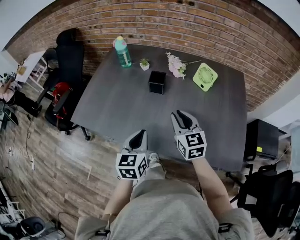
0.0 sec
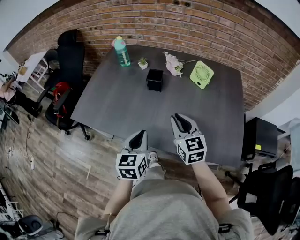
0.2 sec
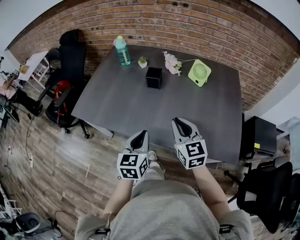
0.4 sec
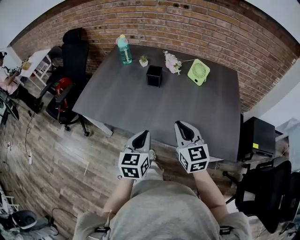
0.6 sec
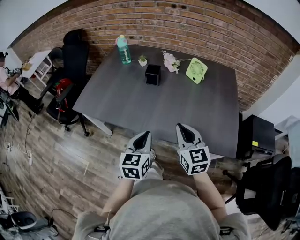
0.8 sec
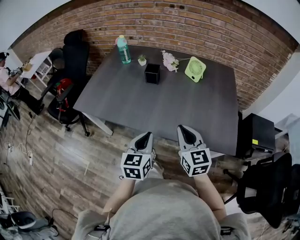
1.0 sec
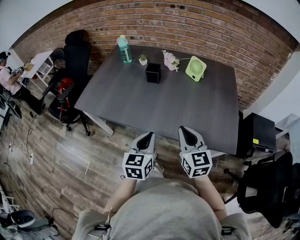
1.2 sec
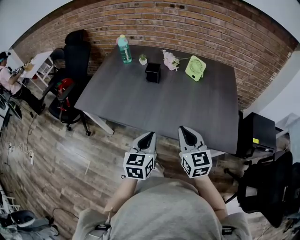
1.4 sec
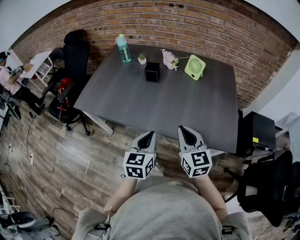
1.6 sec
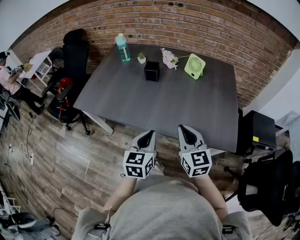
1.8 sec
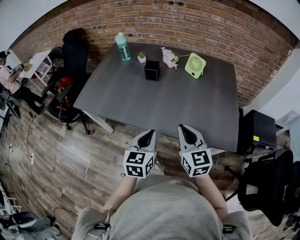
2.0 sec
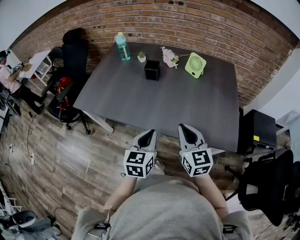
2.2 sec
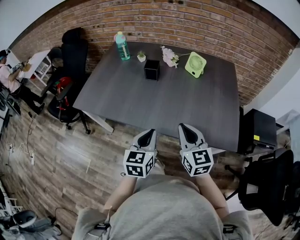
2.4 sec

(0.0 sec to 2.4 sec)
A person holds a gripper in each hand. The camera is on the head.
0.0 sec - 1.2 sec: The left gripper is displaced backward and to the right by some 15 cm. Meanwhile the right gripper goes approximately 20 cm backward.
1.2 sec - 2.4 sec: Neither gripper changes place.

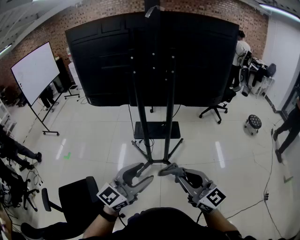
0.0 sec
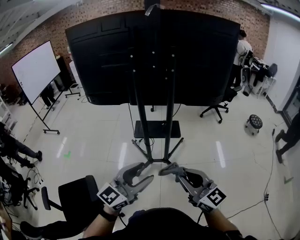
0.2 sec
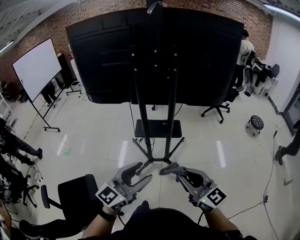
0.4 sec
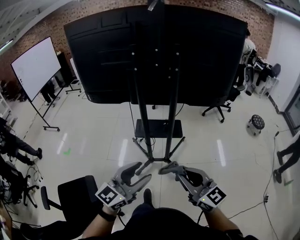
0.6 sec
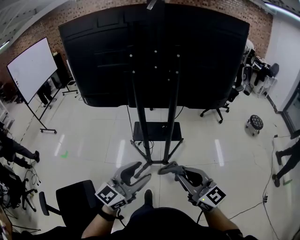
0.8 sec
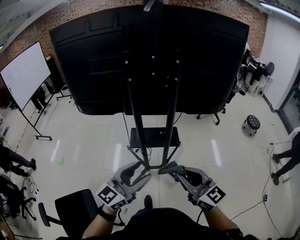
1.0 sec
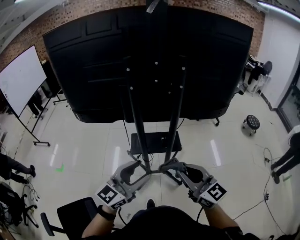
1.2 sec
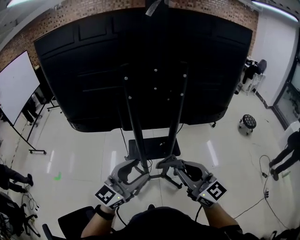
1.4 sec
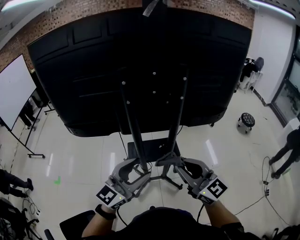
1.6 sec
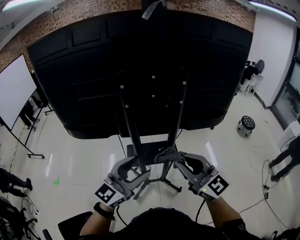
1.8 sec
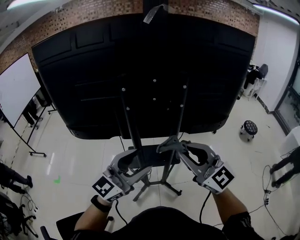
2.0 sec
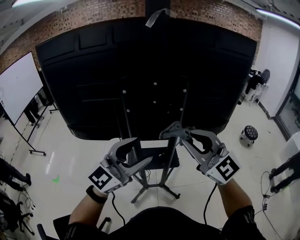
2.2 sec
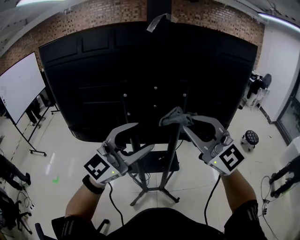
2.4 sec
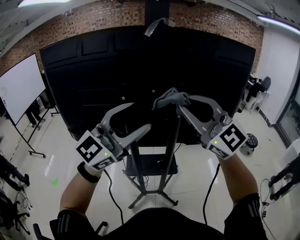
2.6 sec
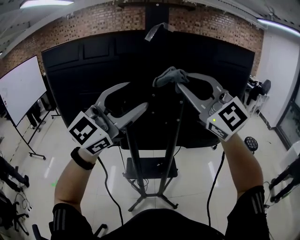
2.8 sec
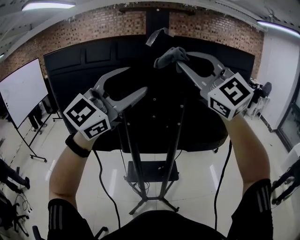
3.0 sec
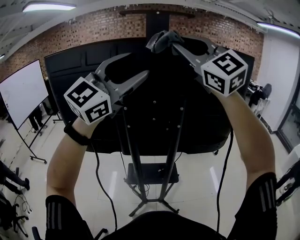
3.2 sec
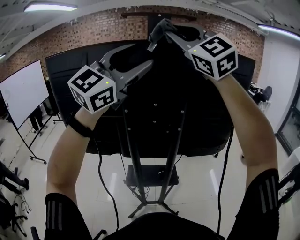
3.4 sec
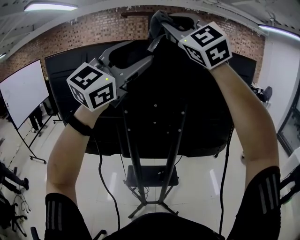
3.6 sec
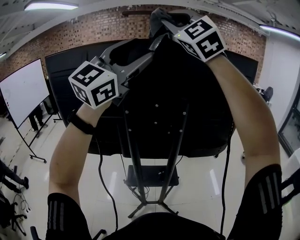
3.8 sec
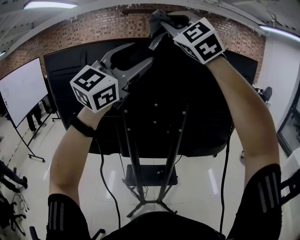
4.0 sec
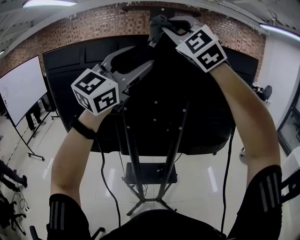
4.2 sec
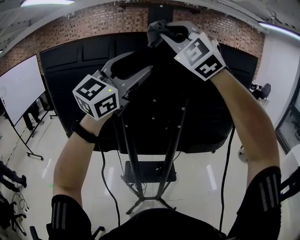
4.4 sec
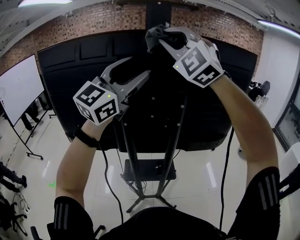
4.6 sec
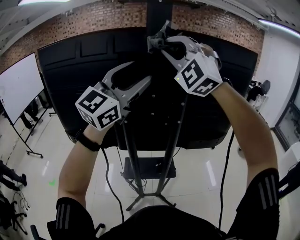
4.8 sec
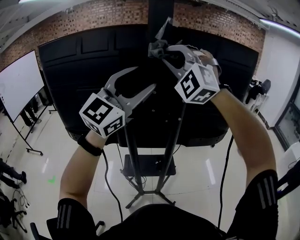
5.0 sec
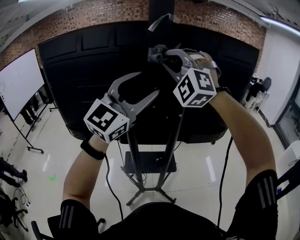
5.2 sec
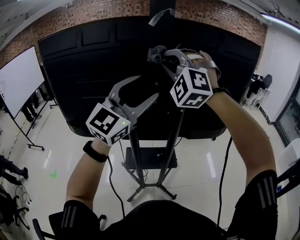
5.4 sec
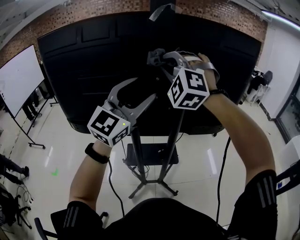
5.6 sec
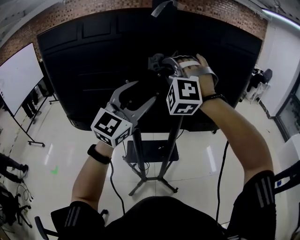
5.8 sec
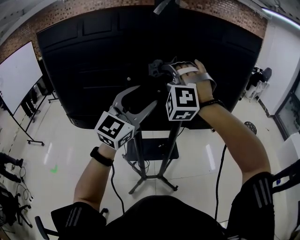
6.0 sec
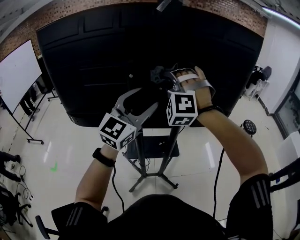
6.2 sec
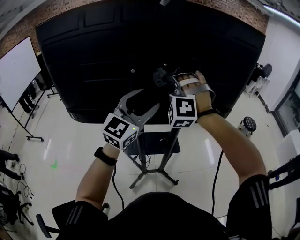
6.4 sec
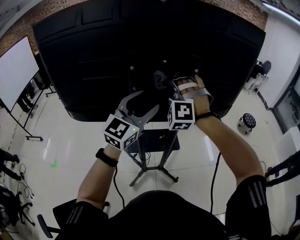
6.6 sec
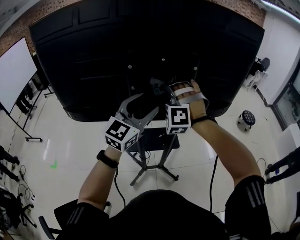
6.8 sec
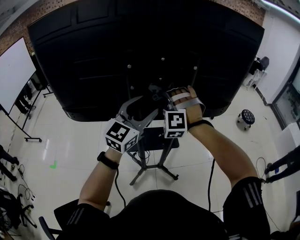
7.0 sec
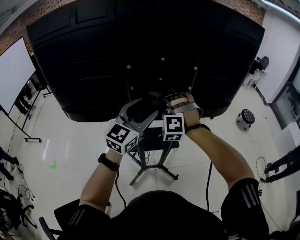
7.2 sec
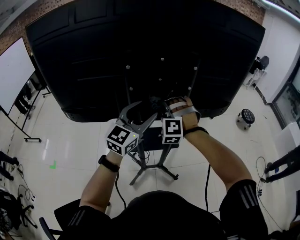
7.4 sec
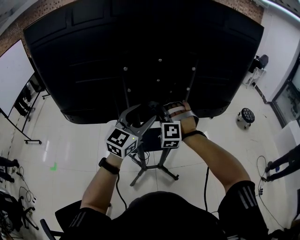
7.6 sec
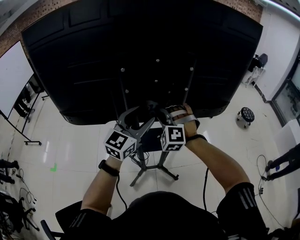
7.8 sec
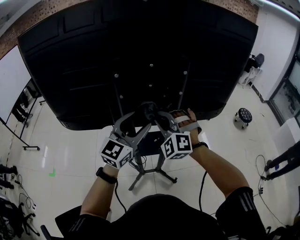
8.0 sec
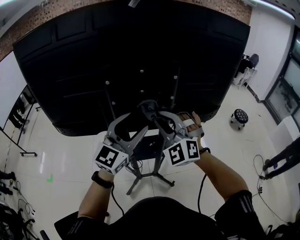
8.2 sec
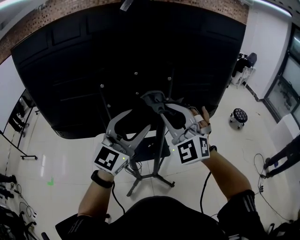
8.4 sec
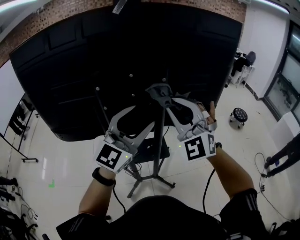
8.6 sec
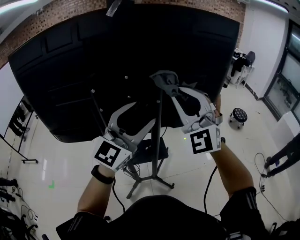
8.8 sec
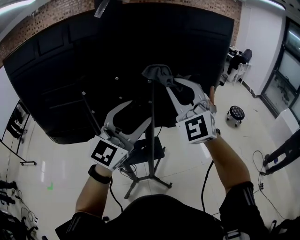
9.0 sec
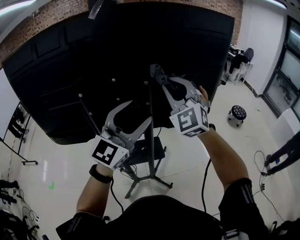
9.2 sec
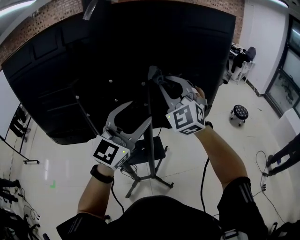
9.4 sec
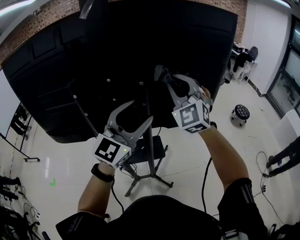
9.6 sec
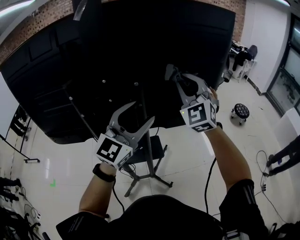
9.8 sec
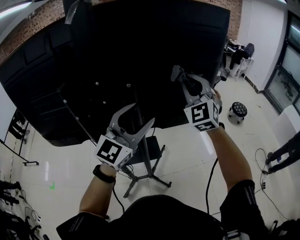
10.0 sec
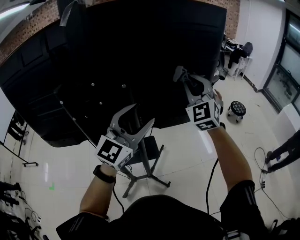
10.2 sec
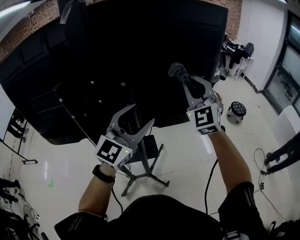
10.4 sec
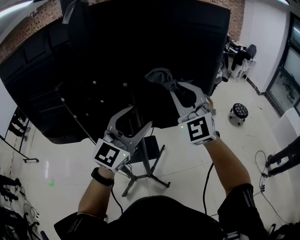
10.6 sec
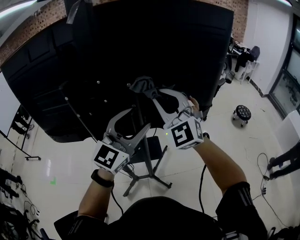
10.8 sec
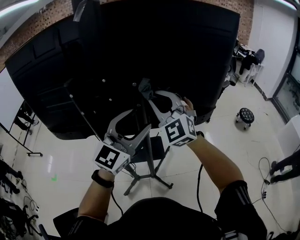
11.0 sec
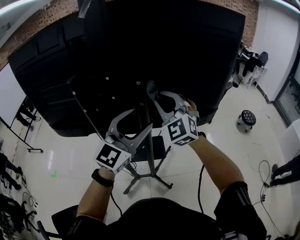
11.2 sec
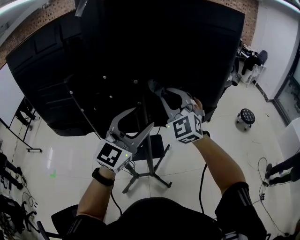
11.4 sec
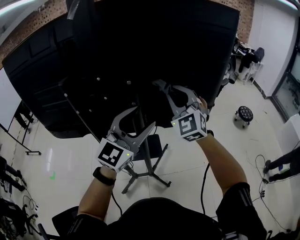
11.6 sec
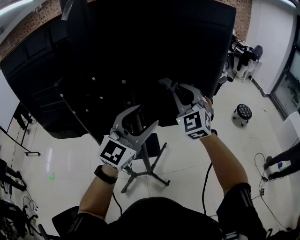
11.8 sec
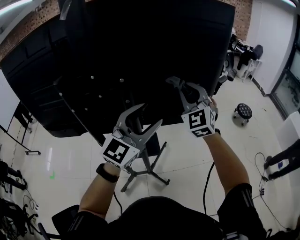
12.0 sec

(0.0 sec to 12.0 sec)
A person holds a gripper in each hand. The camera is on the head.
0.0 sec - 1.6 sec: Both grippers move forward, about 30 cm.
1.6 sec - 3.0 sec: The left gripper goes about 35 cm upward, and rotates approximately 30 degrees. The right gripper travels upward and forward by roughly 40 cm, and rotates around the line of its fingers by approximately 40 degrees, counterclockwise from behind.
3.0 sec - 4.4 sec: The right gripper moves forward, to the left and upward, some 15 cm, and swivels approximately 30 degrees; the left gripper heads forward, covering about 5 cm, and goes upward and returns, approximately 10 cm each way.
4.4 sec - 6.0 sec: Both grippers travel together downward, approximately 25 cm. The right gripper changes its angle by approximately 40 degrees.
6.0 sec - 7.6 sec: The right gripper moves downward, some 25 cm. Meanwhile the left gripper travels downward by approximately 15 cm.
7.6 sec - 9.0 sec: The left gripper goes roughly 20 cm upward and to the right. The right gripper shifts roughly 30 cm upward and to the right, and tips its fingers upward by roughly 40 degrees.
9.0 sec - 10.4 sec: The left gripper goes some 10 cm to the right and forward; the right gripper is displaced to the right and forward by about 15 cm.
10.4 sec - 12.0 sec: The right gripper travels downward by roughly 5 cm, and goes to the left and returns, approximately 15 cm each way.

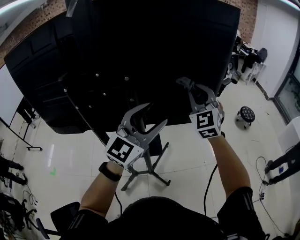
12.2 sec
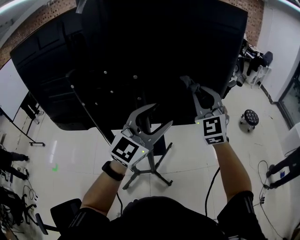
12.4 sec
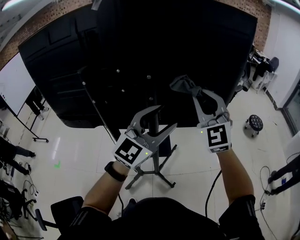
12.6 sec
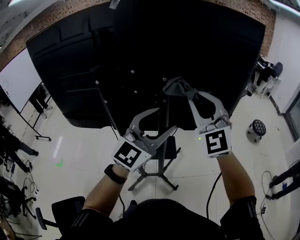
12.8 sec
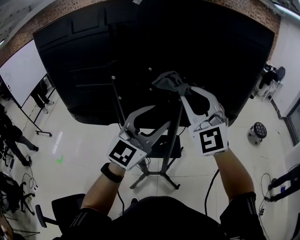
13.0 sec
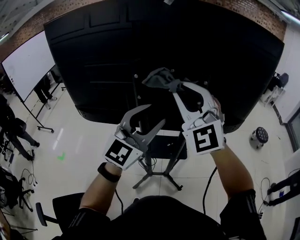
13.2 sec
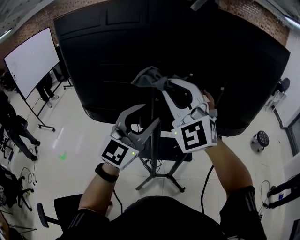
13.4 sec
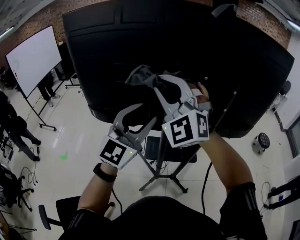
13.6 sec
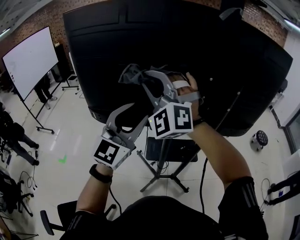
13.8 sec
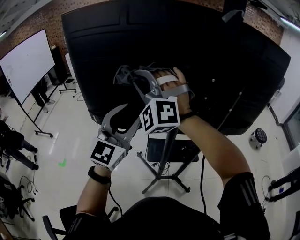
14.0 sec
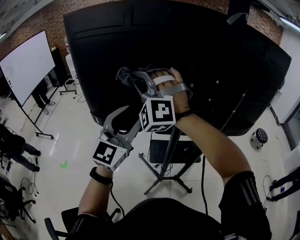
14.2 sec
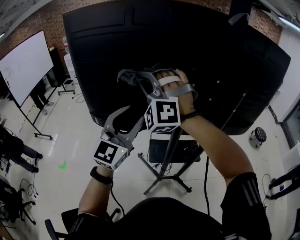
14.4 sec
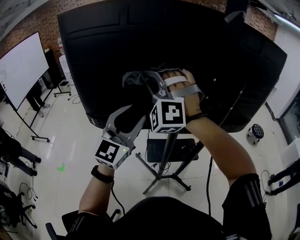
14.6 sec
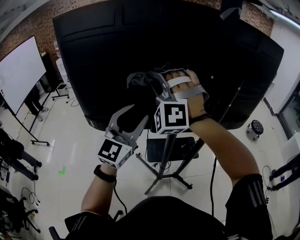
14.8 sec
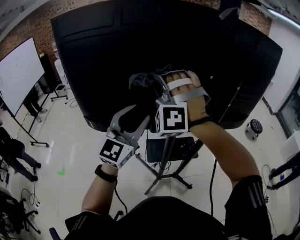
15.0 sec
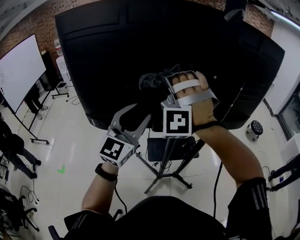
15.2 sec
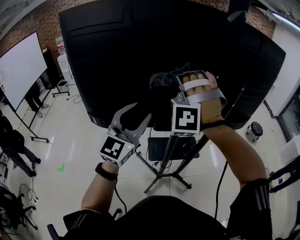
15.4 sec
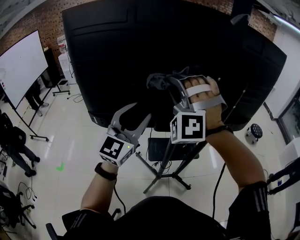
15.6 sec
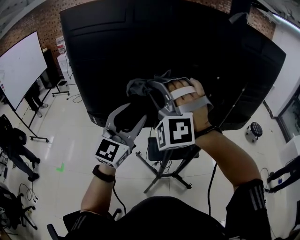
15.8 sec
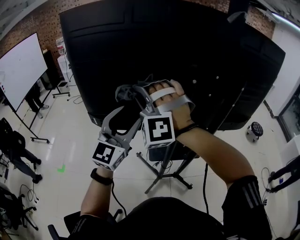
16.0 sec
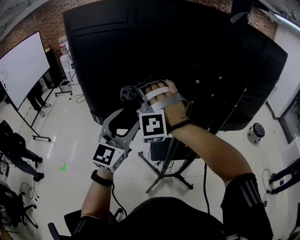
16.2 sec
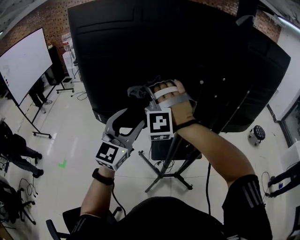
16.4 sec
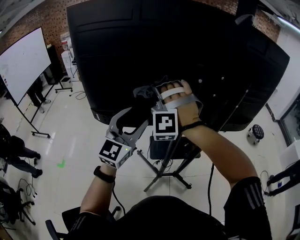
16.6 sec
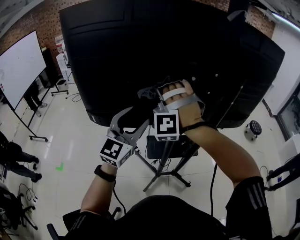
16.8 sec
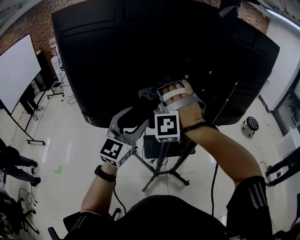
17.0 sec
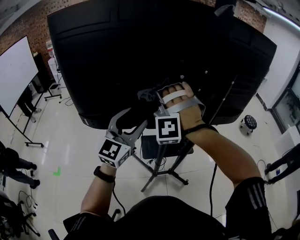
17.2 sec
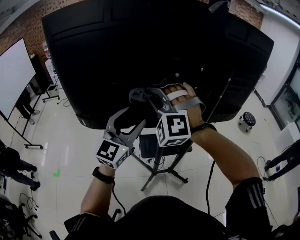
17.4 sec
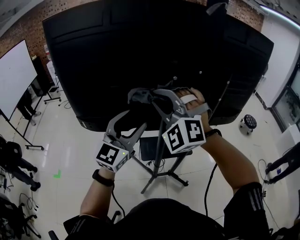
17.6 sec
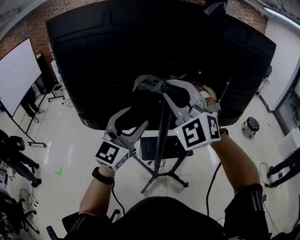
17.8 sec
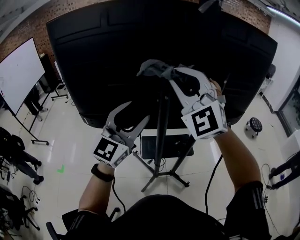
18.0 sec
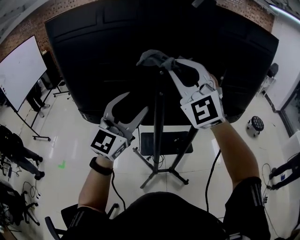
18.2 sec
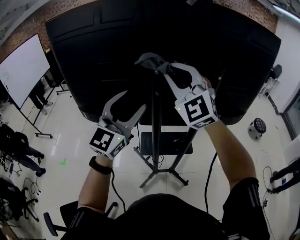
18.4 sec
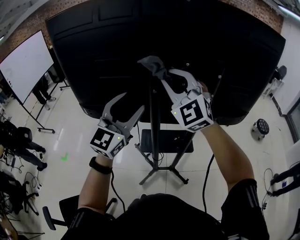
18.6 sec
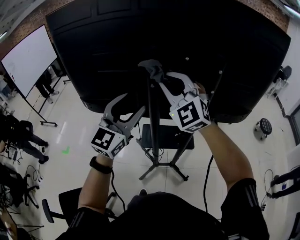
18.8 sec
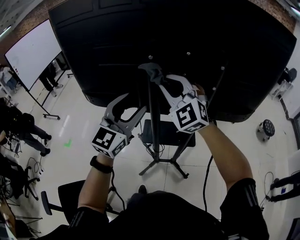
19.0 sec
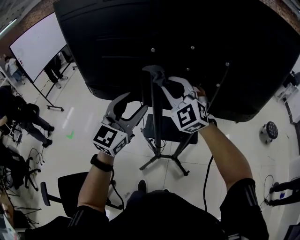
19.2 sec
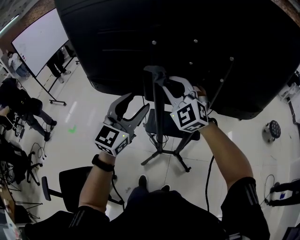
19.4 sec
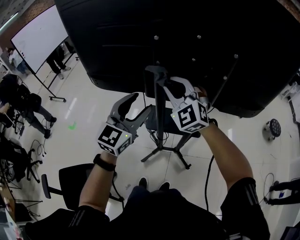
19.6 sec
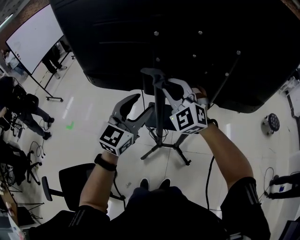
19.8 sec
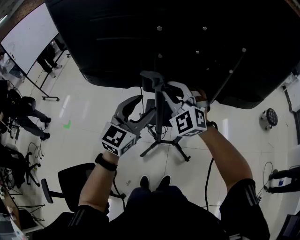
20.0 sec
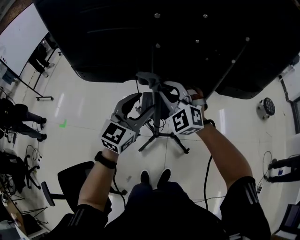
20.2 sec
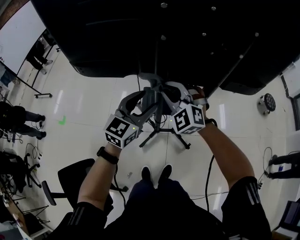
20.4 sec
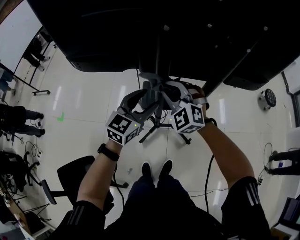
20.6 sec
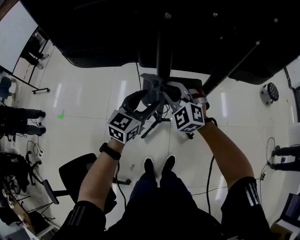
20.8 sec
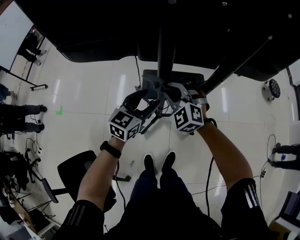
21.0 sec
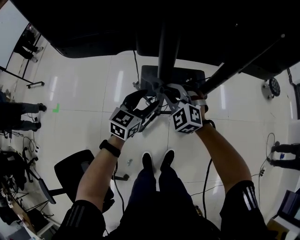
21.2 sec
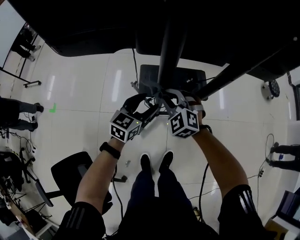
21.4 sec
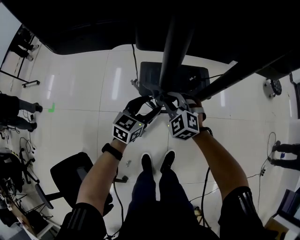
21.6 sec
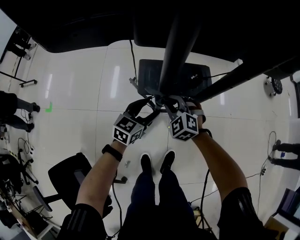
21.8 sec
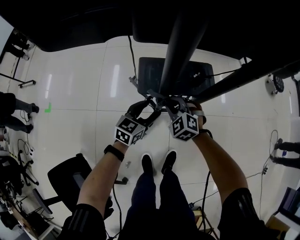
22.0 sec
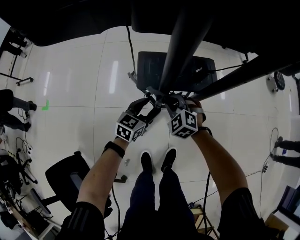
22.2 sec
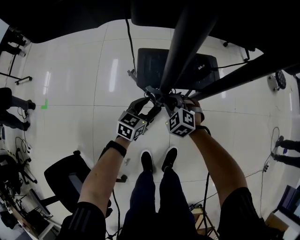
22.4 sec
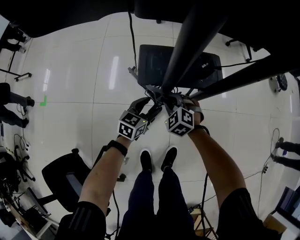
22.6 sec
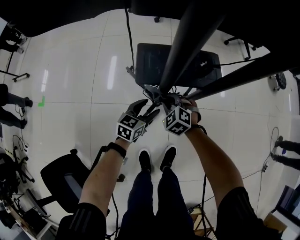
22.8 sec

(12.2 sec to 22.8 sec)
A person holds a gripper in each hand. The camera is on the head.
12.2 sec - 13.8 sec: Both grippers are carried to the left, about 50 cm. The right gripper swivels approximately 40 degrees.
13.8 sec - 15.2 sec: The right gripper travels to the left and back again, roughly 5 cm each way, and swivels approximately 40 degrees, while the left gripper changes place by roughly 5 cm.
15.2 sec - 16.8 sec: The right gripper goes some 10 cm downward, and goes to the left and returns, some 10 cm each way.
16.8 sec - 18.2 sec: The right gripper shifts about 20 cm to the right and upward, and rolls clockwise, seen from behind, by about 50 degrees. The left gripper shifts roughly 15 cm to the right and upward.
18.2 sec - 19.8 sec: Both grippers travel together downward, roughly 20 cm. The right gripper changes its angle by roughly 20 degrees; the left gripper turns by approximately 20 degrees.
19.8 sec - 21.2 sec: Both grippers travel together downward, some 30 cm. The right gripper changes its angle by roughly 30 degrees. The left gripper changes its angle by about 30 degrees.
21.2 sec - 22.8 sec: The two grippers go some 30 cm downward. The right gripper turns by about 20 degrees.
